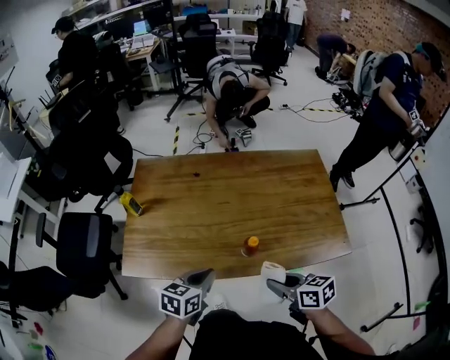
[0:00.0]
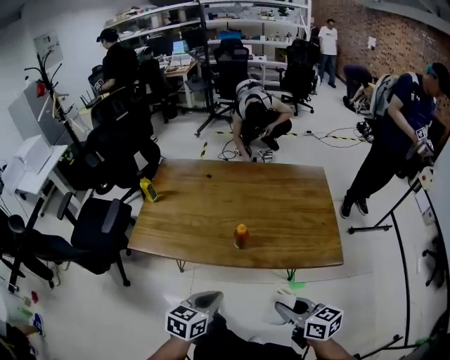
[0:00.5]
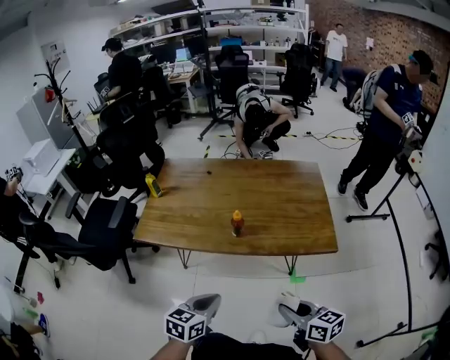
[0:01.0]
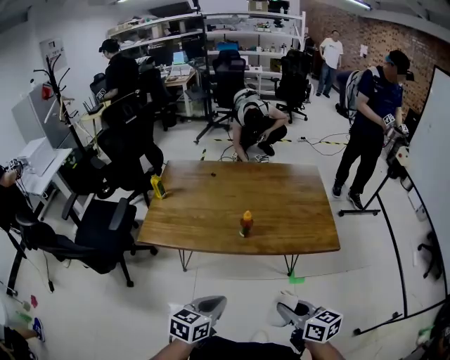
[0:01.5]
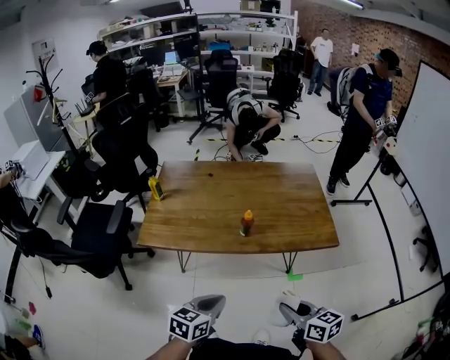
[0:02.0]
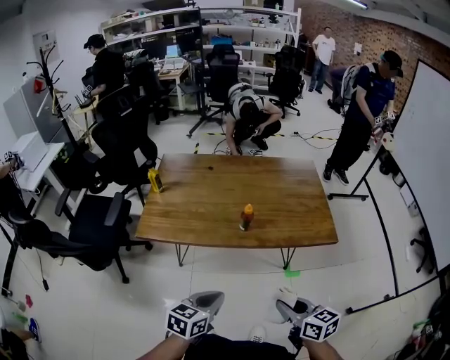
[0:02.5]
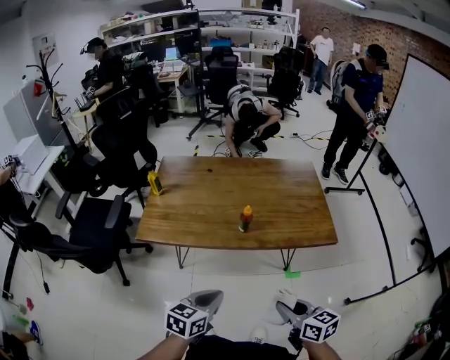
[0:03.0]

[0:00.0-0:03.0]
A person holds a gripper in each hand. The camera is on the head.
0:00.0 to 0:01.5: Both grippers travel together backward, about 25 cm.
0:01.5 to 0:03.0: The grippers make only small movements.

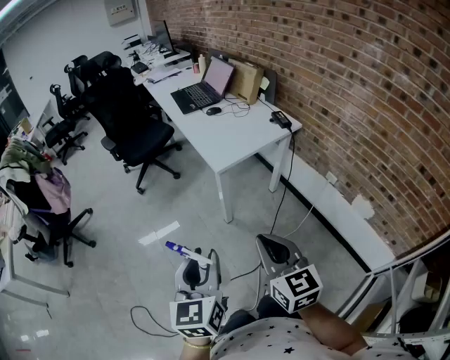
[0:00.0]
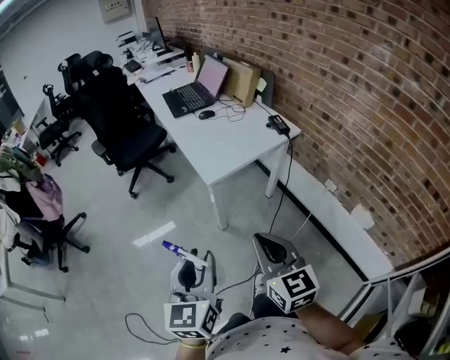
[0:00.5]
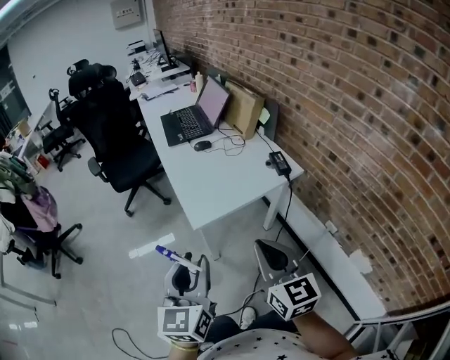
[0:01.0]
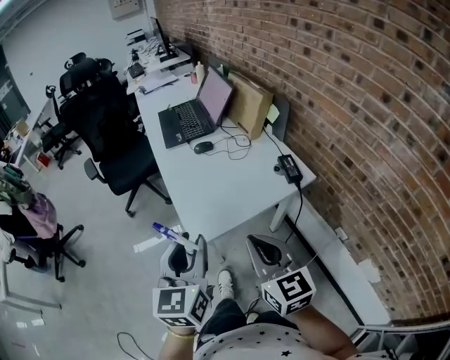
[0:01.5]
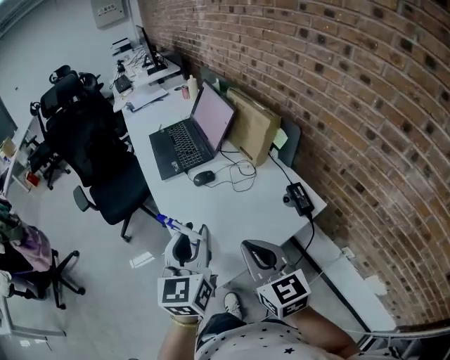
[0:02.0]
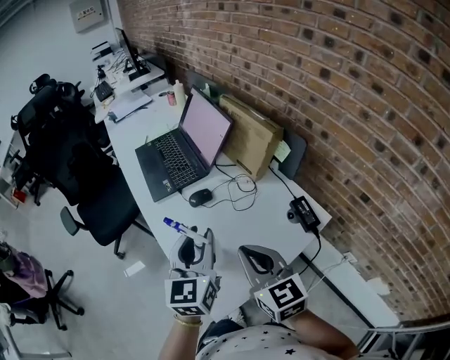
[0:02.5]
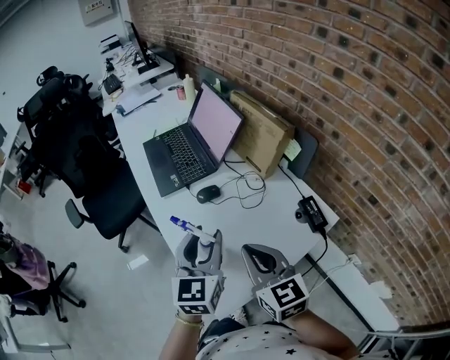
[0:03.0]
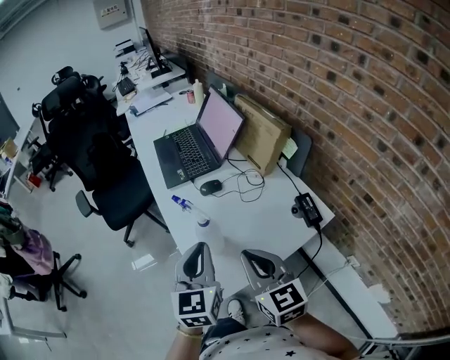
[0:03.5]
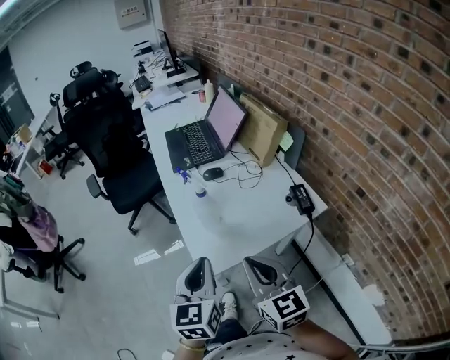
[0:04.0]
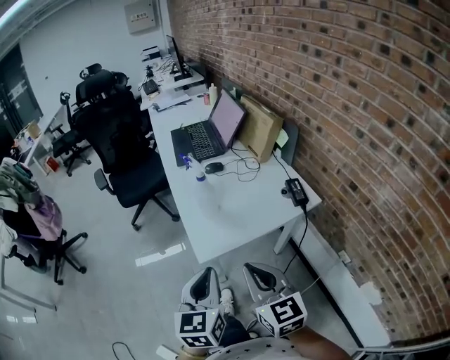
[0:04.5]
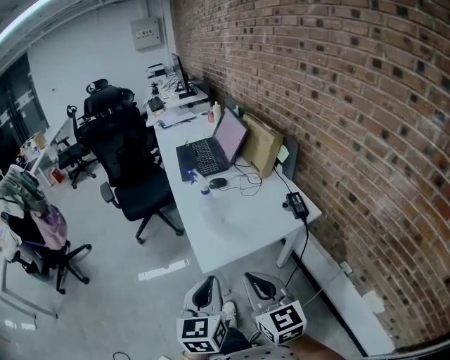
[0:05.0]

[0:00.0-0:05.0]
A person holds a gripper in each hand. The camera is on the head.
0:00.0 to 0:02.5: The two grippers travel together, forward, some 70 cm.
0:02.5 to 0:05.0: The grippers both shift backward by approximately 30 cm. The left gripper closes.

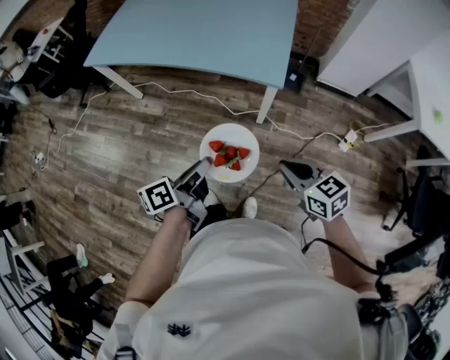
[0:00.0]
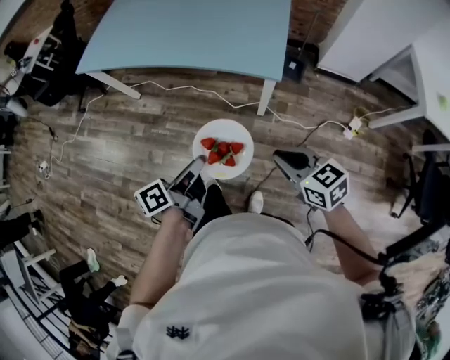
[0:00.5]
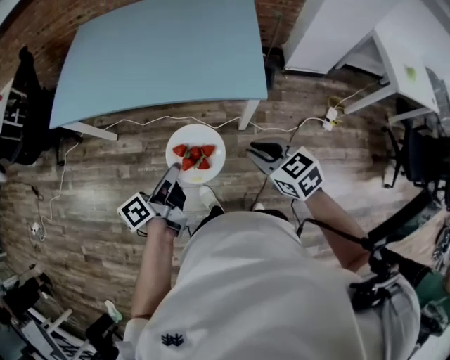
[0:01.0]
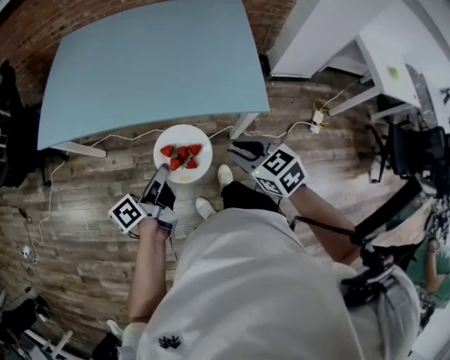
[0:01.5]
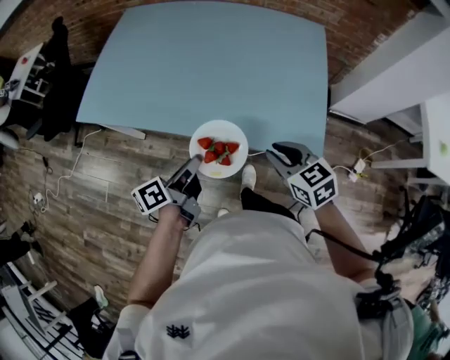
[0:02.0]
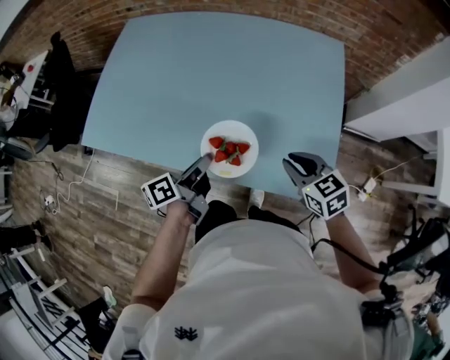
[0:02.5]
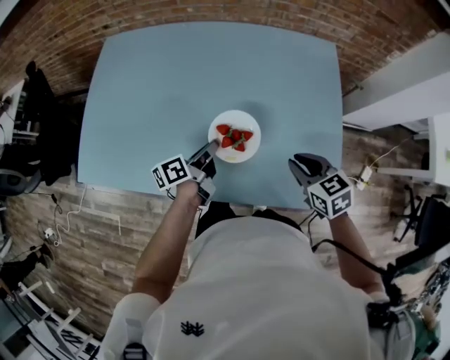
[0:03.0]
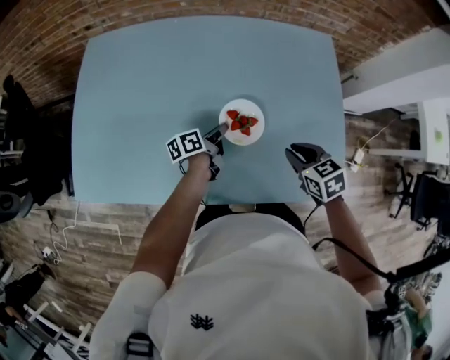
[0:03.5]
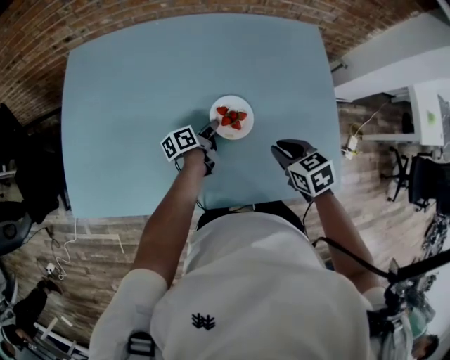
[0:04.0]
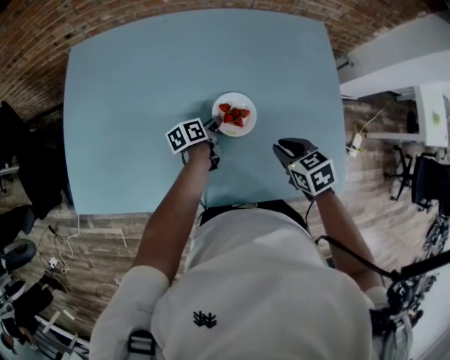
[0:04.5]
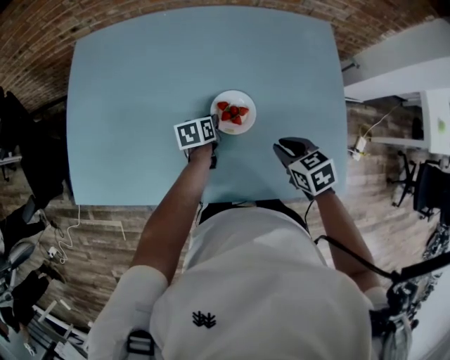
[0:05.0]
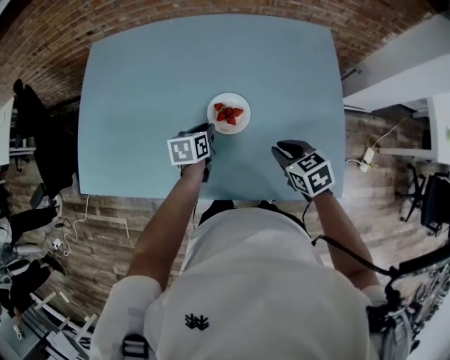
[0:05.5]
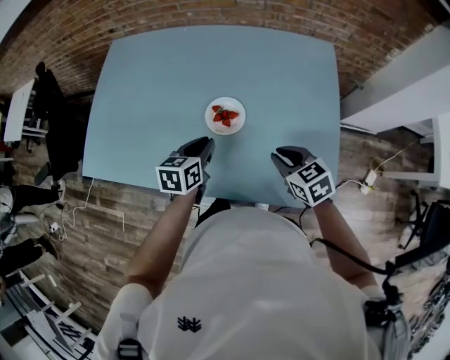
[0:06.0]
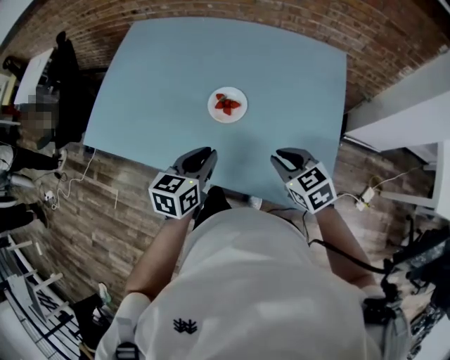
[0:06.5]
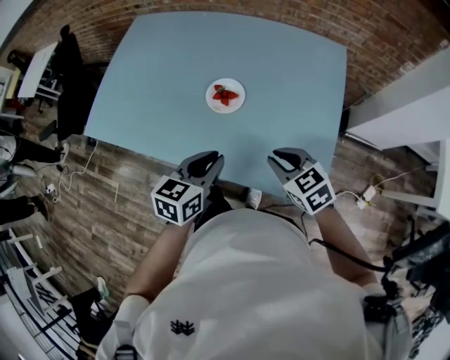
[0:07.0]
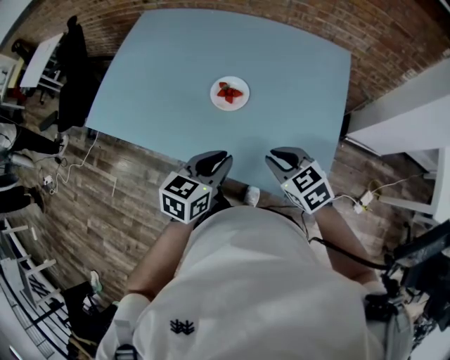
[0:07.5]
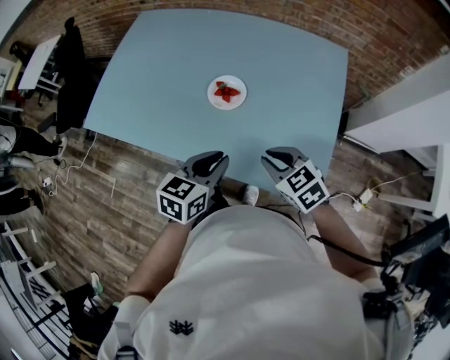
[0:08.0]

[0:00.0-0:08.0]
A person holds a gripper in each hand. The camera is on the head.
0:00.0 to 0:02.0: The two grippers travel together, forward and to the left, some 40 cm.
0:02.0 to 0:04.0: The left gripper goes some 40 cm forward and downward, and swivels approximately 20 degrees. Meanwhile the right gripper moves forward, about 25 cm, and rotates roughly 30 degrees.
0:04.0 to 0:06.0: The left gripper is displaced upward and backward by some 20 cm, and rolls clockwise, seen from behind, by some 40 degrees. The right gripper goes approximately 5 cm to the right.
0:06.0 to 0:08.0: The right gripper travels backward by approximately 10 cm, and turns by about 20 degrees. Meanwhile the left gripper travels backward by about 15 cm.

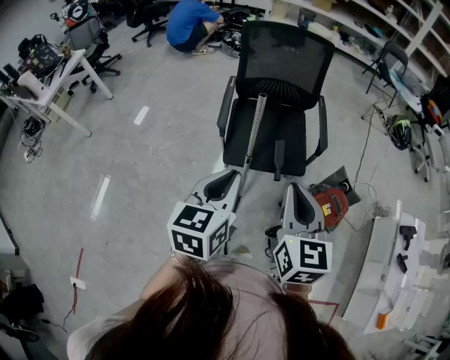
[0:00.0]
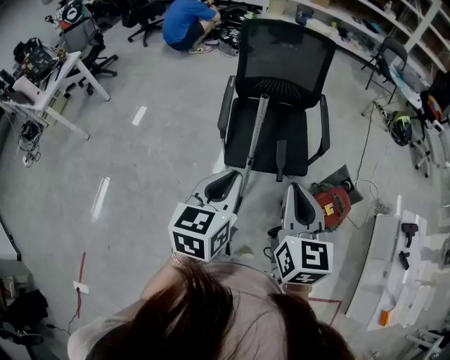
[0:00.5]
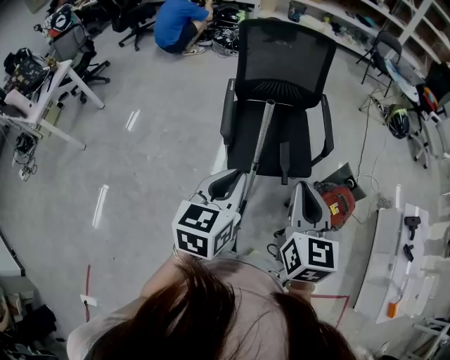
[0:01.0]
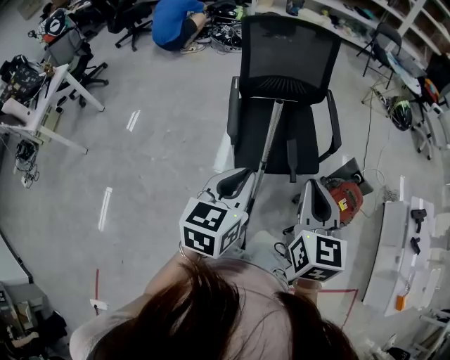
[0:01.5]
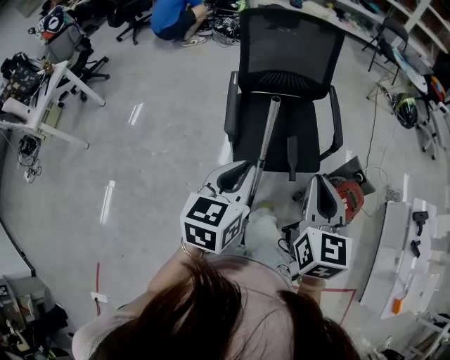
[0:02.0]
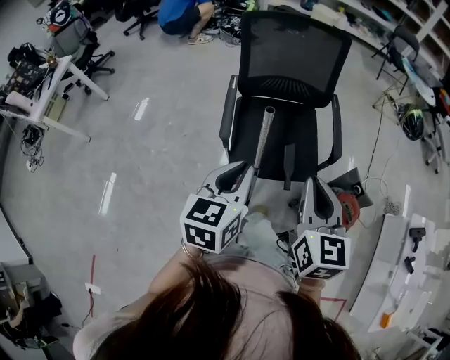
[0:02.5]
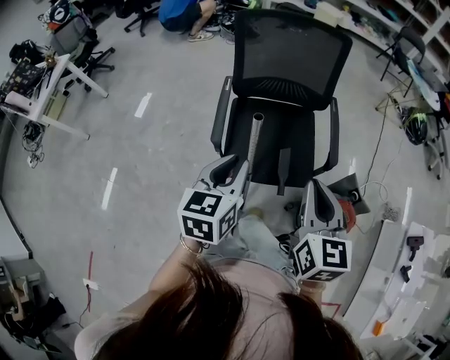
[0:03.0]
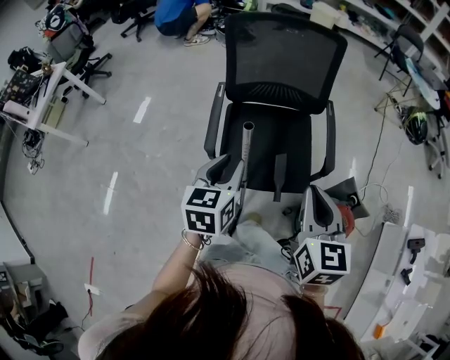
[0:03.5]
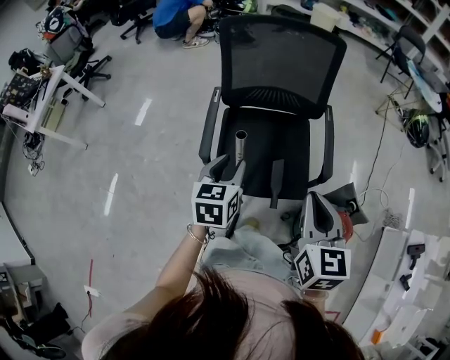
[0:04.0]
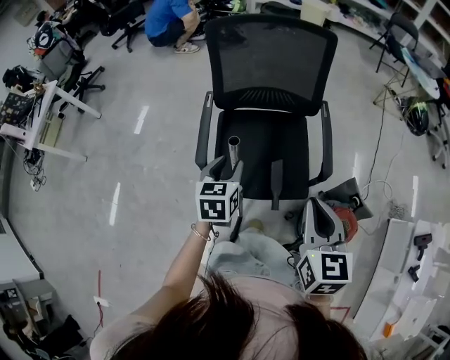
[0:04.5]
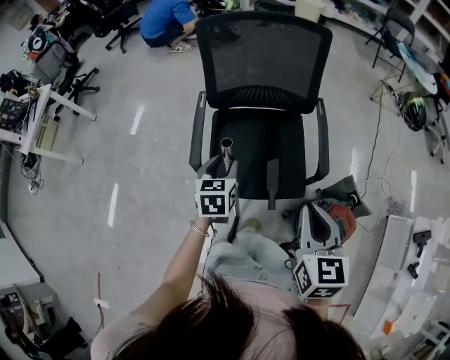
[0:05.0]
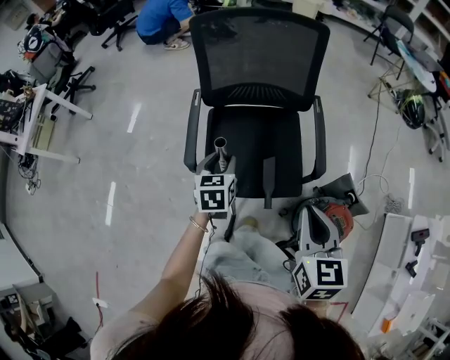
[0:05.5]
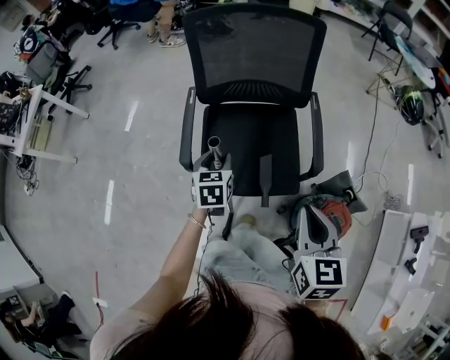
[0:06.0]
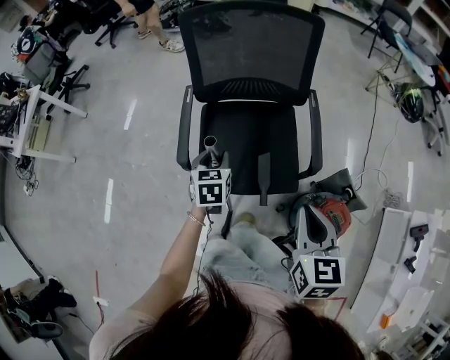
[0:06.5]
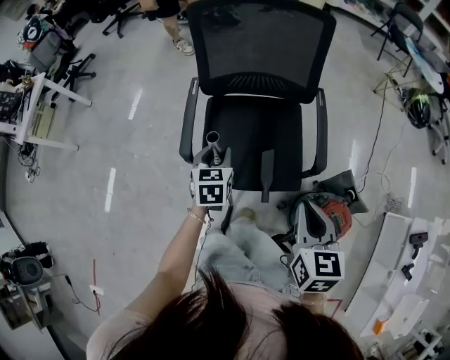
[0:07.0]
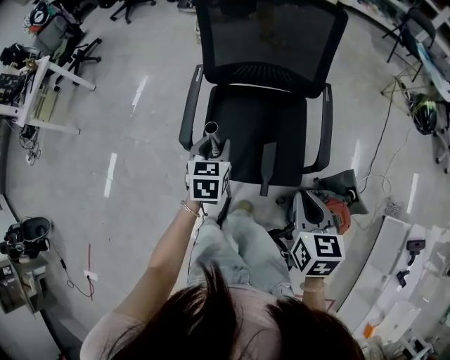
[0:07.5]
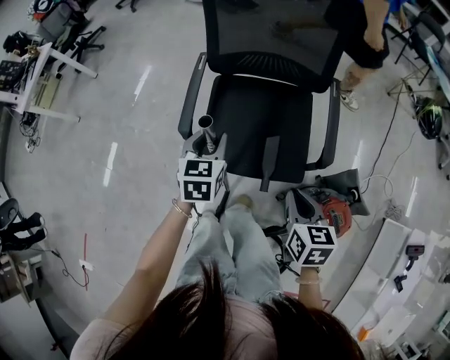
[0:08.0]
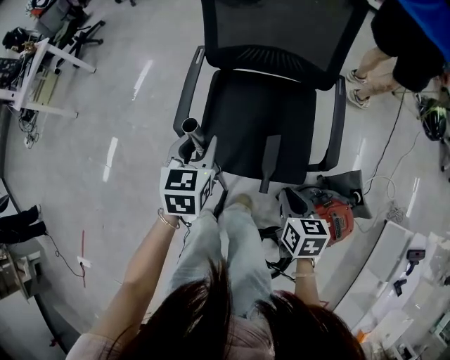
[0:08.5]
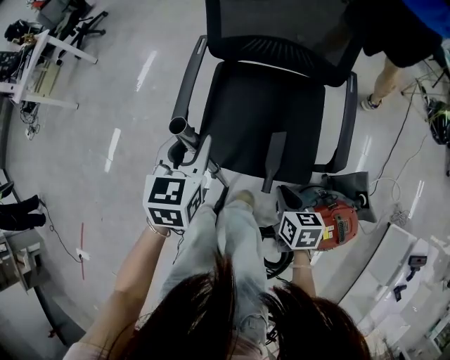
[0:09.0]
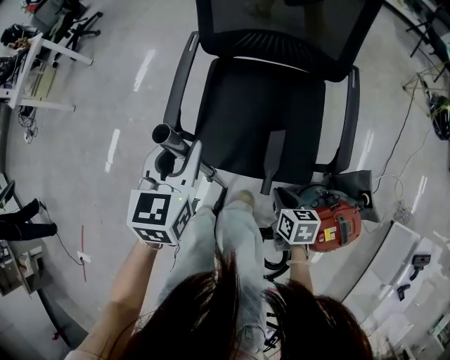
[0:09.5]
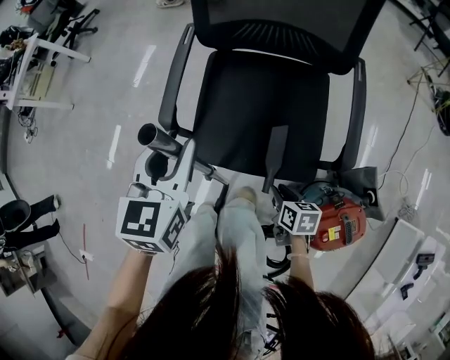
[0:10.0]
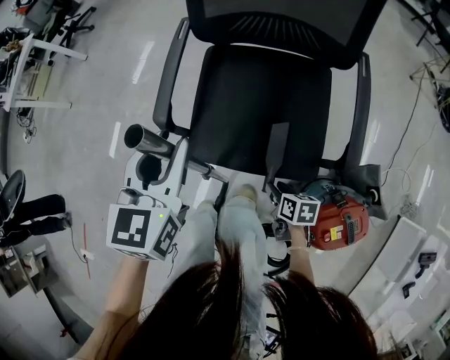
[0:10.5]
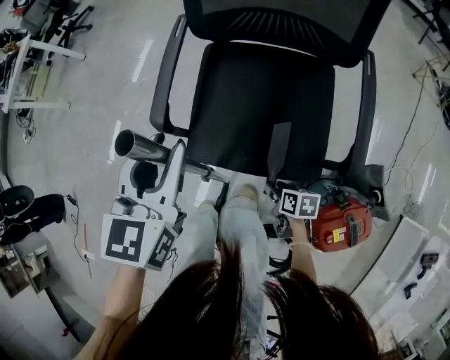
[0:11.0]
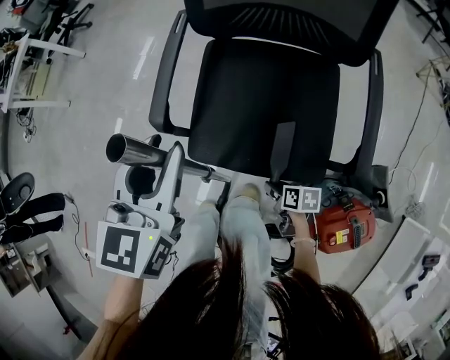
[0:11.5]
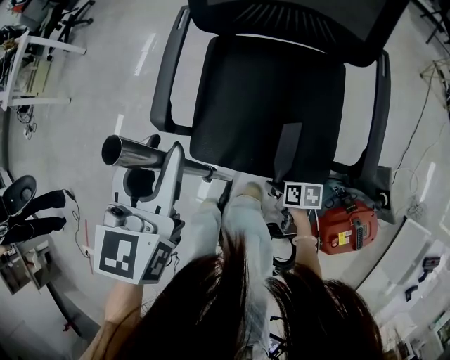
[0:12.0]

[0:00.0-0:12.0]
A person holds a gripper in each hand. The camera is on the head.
0:00.0 to 0:02.0: The right gripper heads forward, covering about 10 cm. The left gripper goes some 15 cm forward and to the left.
0:02.0 to 0:04.0: The left gripper travels forward and downward by roughly 25 cm, and opens up, while the right gripper travels forward and to the right by about 20 cm.
0:04.0 to 0:06.0: The left gripper shifts approximately 15 cm downward and forward, while the right gripper goes about 5 cm downward.
0:06.0 to 0:08.0: The right gripper shifts about 15 cm downward.
0:08.0 to 0:10.0: The right gripper moves downward, about 30 cm, and rotates roughly 20 degrees.
0:10.0 to 0:12.0: The right gripper shifts roughly 10 cm downward, and changes its angle by approximately 20 degrees.
